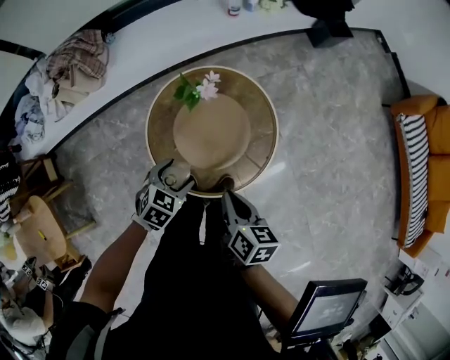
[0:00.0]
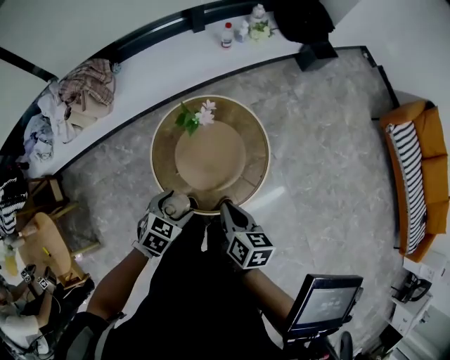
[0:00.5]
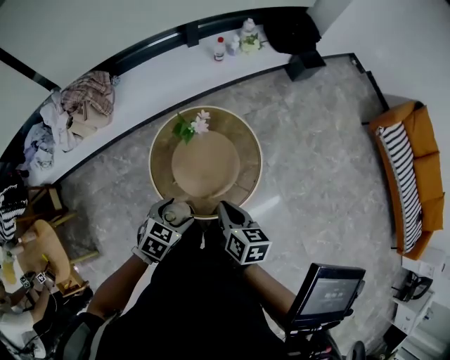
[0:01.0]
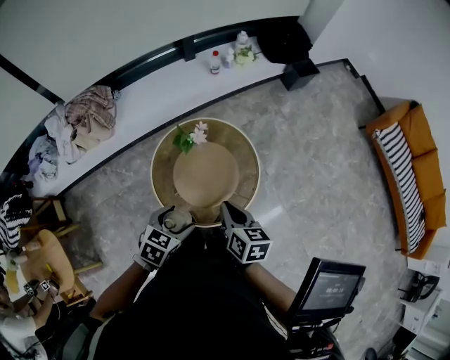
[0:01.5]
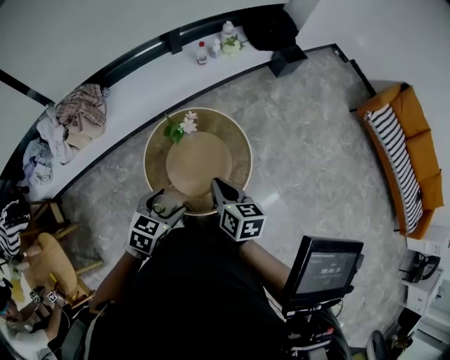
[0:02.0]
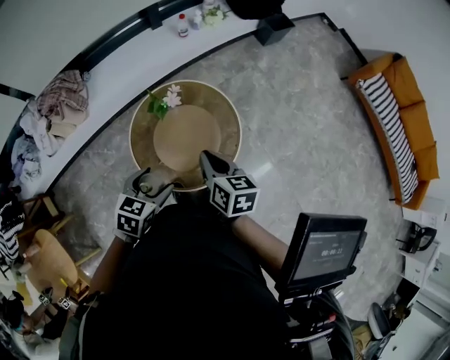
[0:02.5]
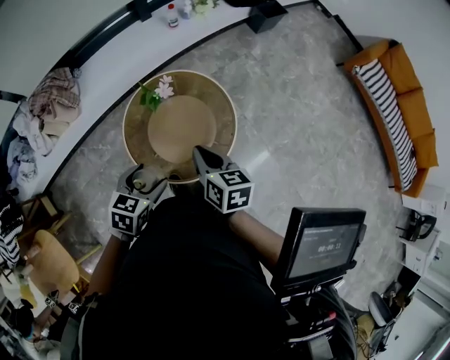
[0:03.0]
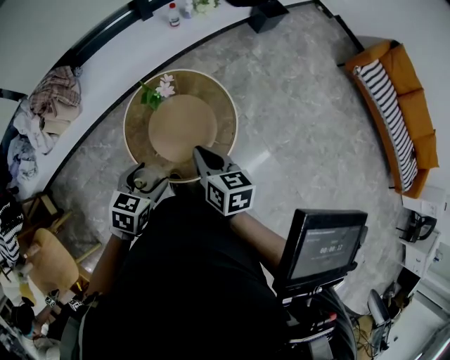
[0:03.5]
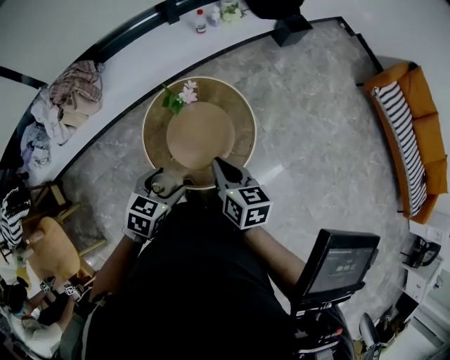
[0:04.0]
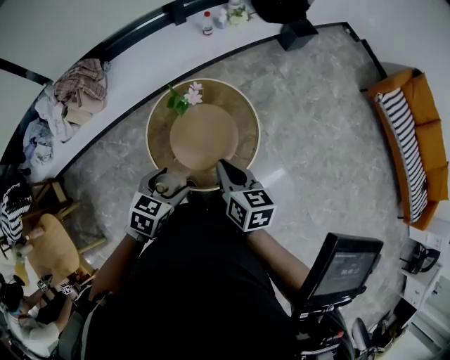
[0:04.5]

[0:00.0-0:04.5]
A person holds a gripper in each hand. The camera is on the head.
0:00.0 to 0:02.0: The right gripper goes some 10 cm upward, while the left gripper heads upward, covering some 20 cm.
0:02.0 to 0:04.5: The grippers make only small movements.

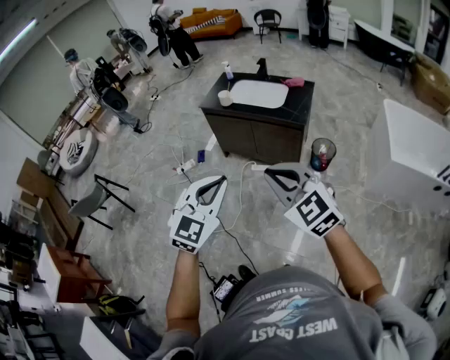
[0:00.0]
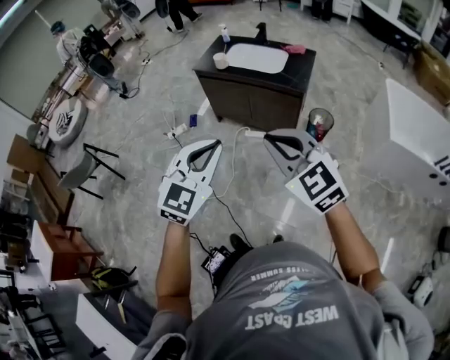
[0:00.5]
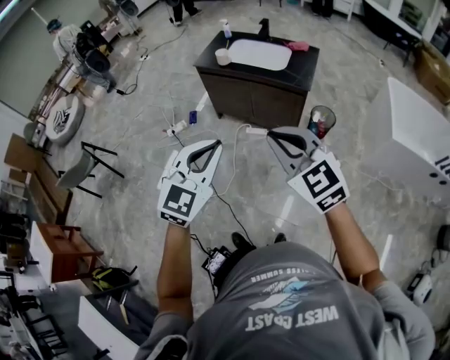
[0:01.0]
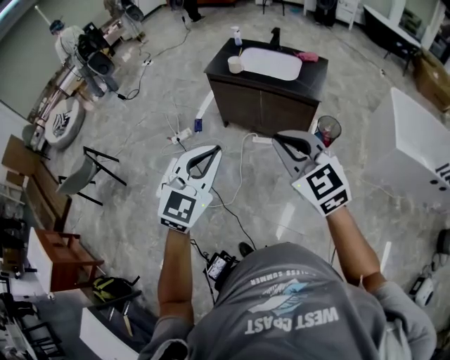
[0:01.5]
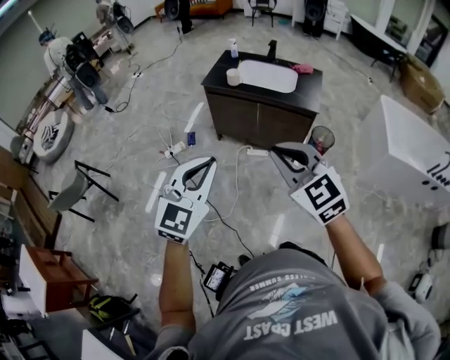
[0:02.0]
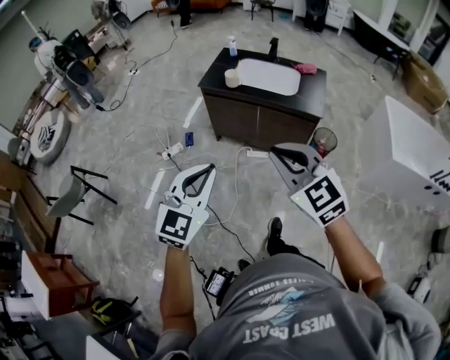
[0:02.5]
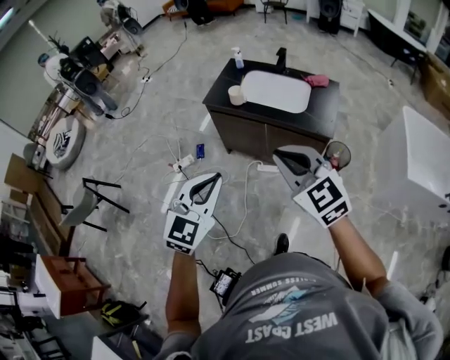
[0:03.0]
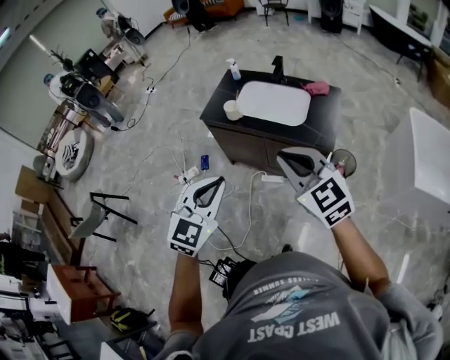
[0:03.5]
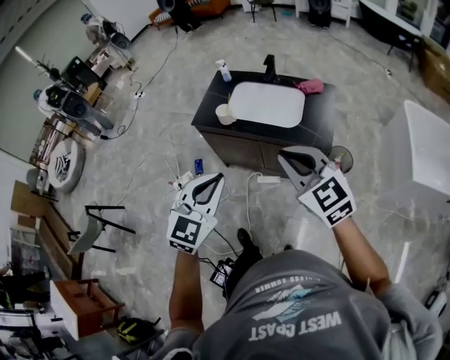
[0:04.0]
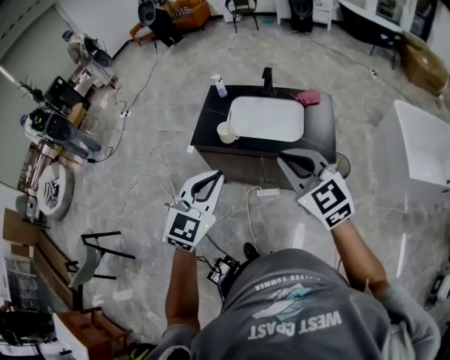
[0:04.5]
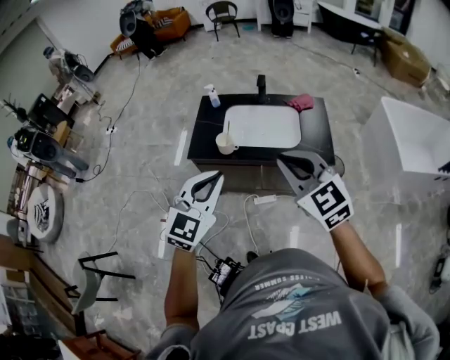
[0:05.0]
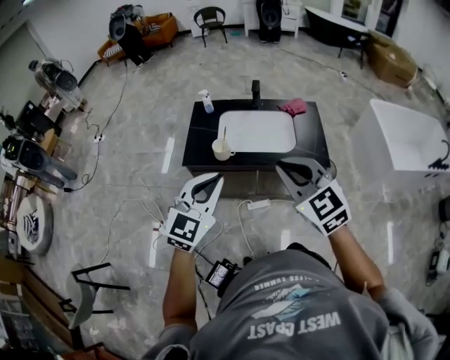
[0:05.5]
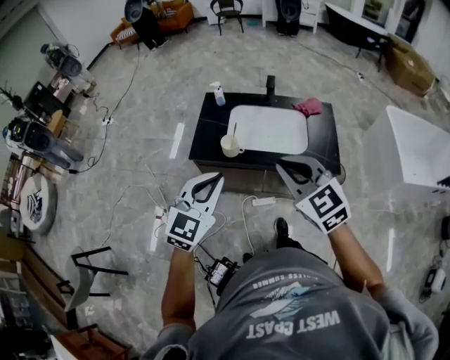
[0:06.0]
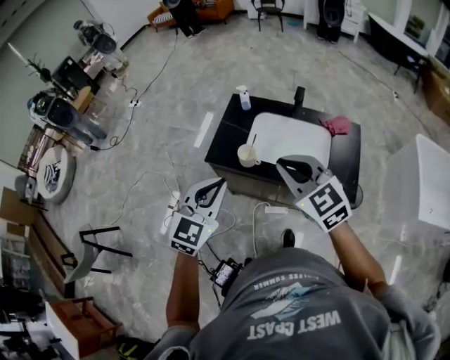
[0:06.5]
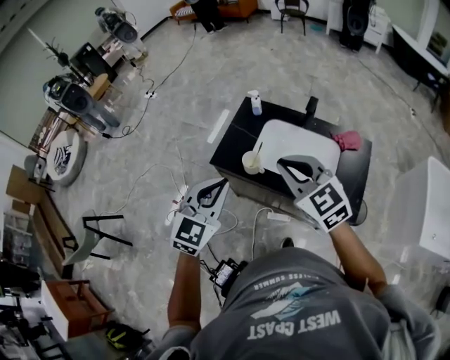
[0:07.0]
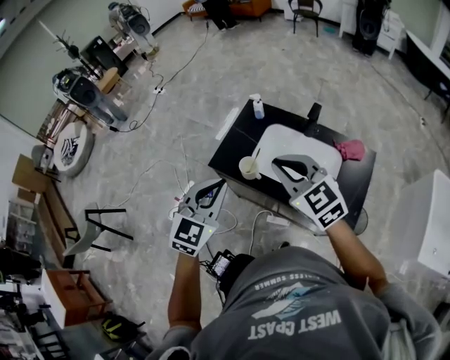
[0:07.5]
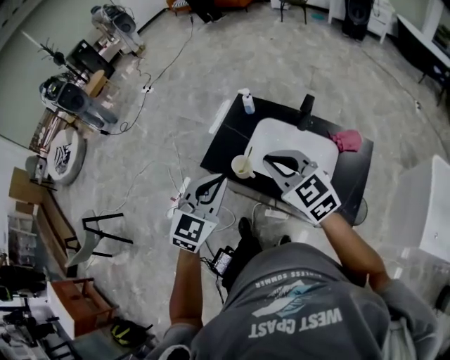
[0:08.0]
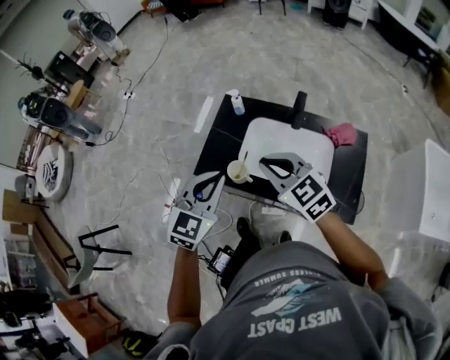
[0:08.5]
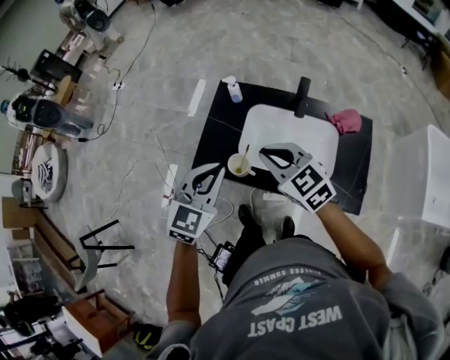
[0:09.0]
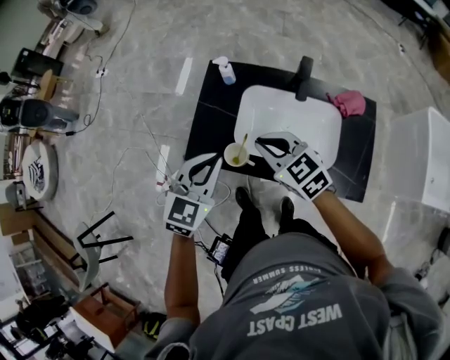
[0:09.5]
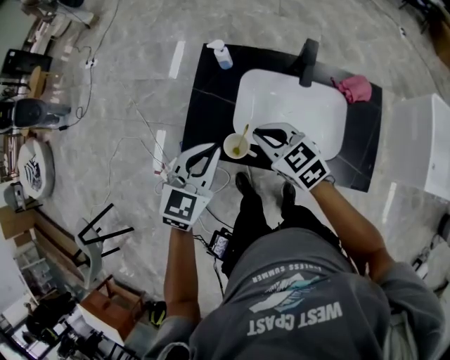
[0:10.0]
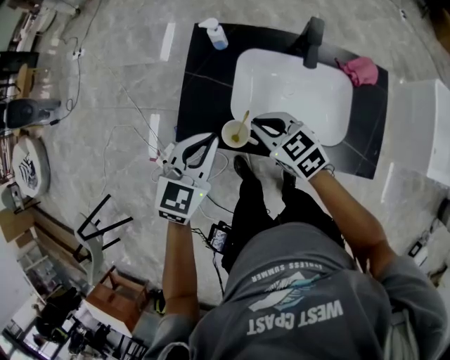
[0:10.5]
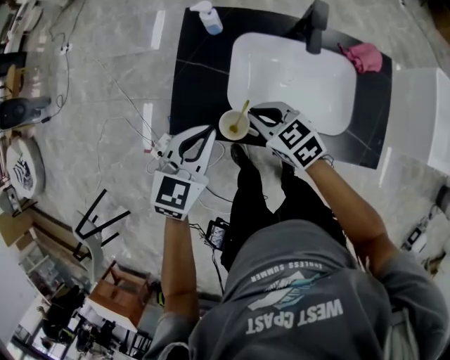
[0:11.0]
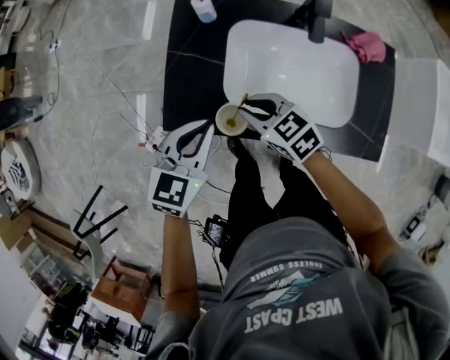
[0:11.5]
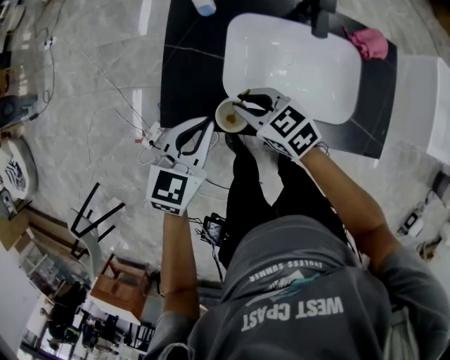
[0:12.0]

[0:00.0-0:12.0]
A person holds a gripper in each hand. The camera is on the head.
0:00.0 to 0:02.0: The grippers both shift to the left and forward by about 20 cm.
0:02.0 to 0:04.0: The two grippers go some 35 cm forward and to the right.
0:04.0 to 0:06.0: The right gripper moves to the left and forward, about 20 cm. The left gripper moves forward and to the left, approximately 20 cm.
0:06.0 to 0:08.0: The right gripper goes roughly 20 cm forward, and changes its angle by roughly 20 degrees. Meanwhile the left gripper heads forward and to the right, covering some 15 cm, and turns by about 20 degrees.
0:08.0 to 0:10.0: The right gripper travels downward and forward by about 20 cm, and turns by about 20 degrees. The left gripper heads forward and downward, covering roughly 15 cm.
0:10.0 to 0:12.0: Both grippers travel together downward, some 10 cm.

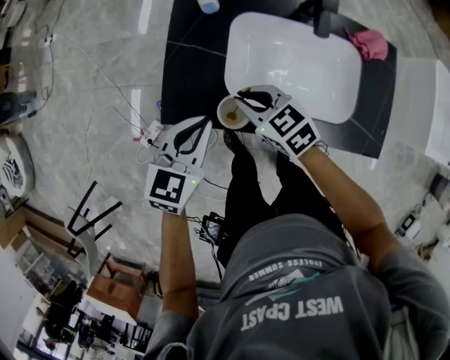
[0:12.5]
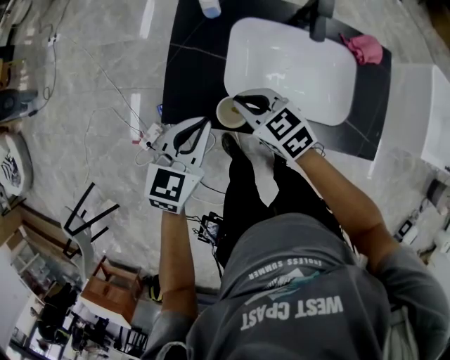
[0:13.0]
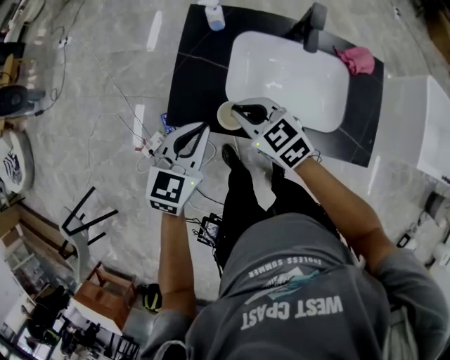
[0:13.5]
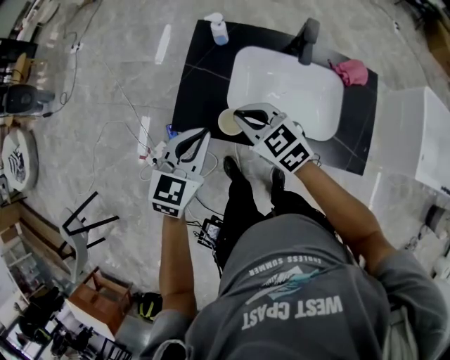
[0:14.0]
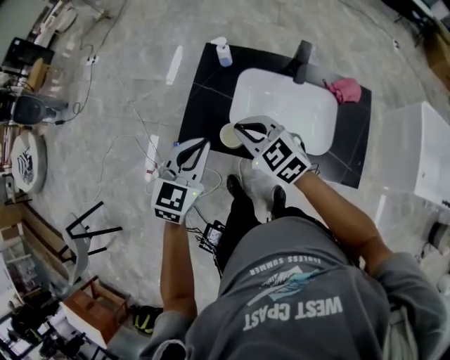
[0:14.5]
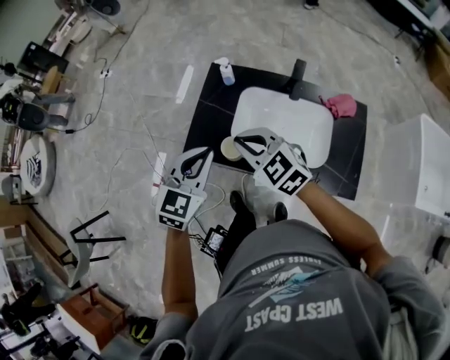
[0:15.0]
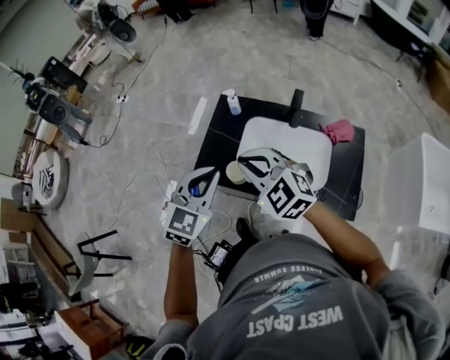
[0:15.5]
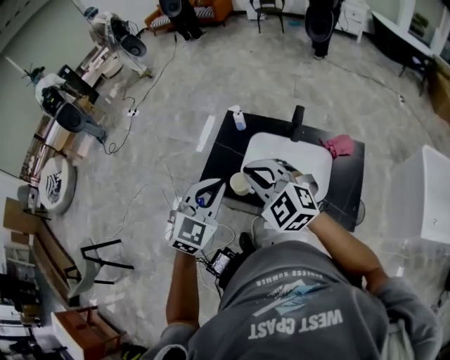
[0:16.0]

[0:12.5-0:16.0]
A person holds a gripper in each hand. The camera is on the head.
0:12.5 to 0:14.5: The grippers both shift upward by about 15 cm. The right gripper turns by approximately 20 degrees.
0:14.5 to 0:16.0: The two grippers go some 15 cm upward and backward. The right gripper turns by some 30 degrees.

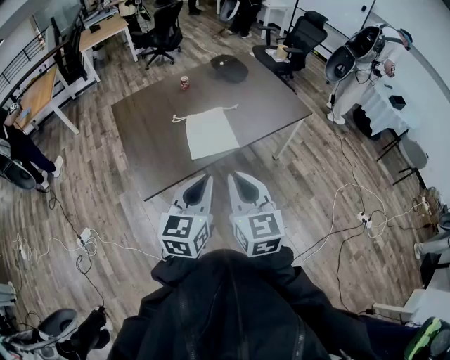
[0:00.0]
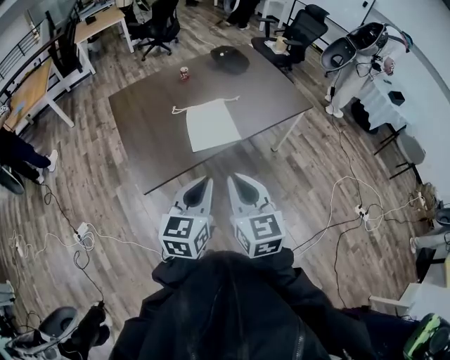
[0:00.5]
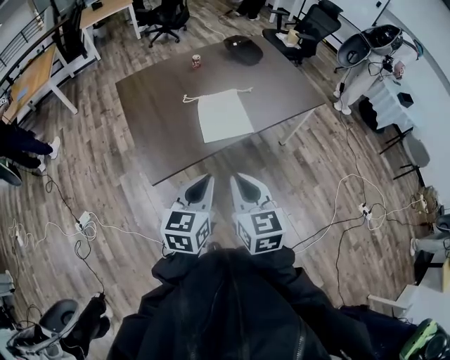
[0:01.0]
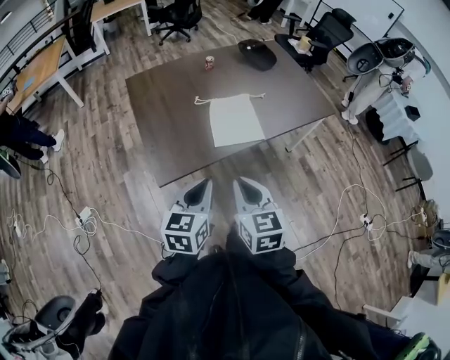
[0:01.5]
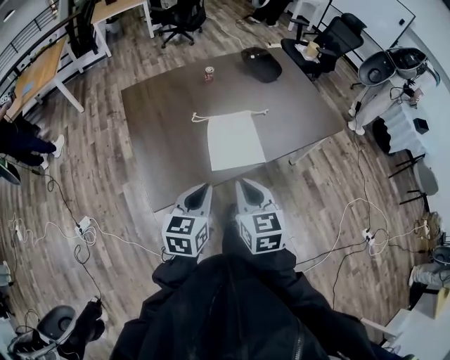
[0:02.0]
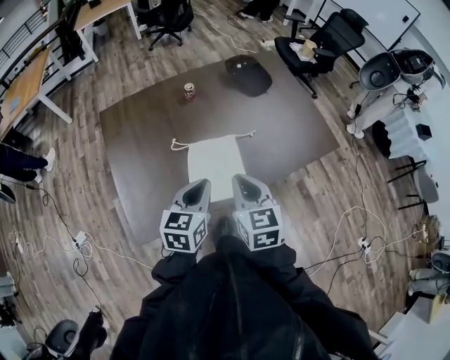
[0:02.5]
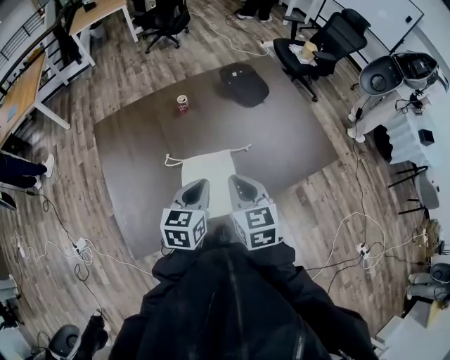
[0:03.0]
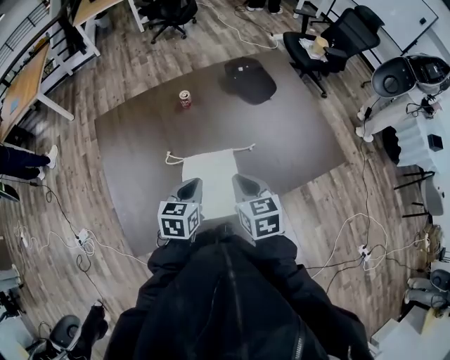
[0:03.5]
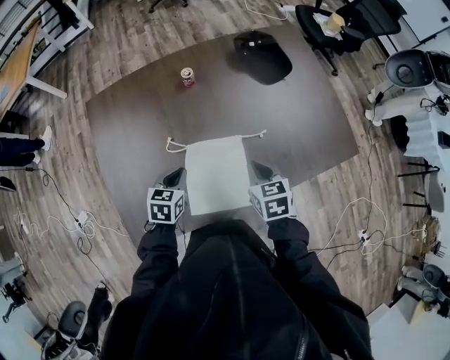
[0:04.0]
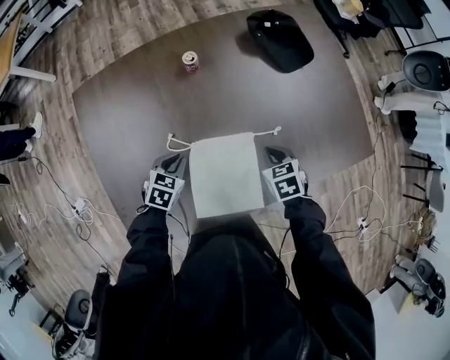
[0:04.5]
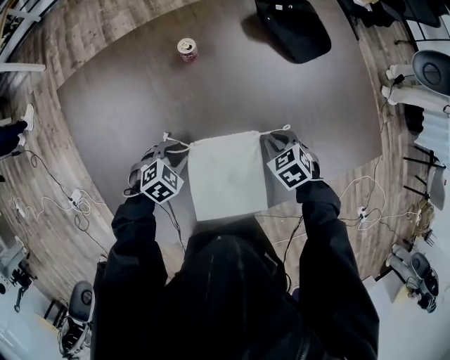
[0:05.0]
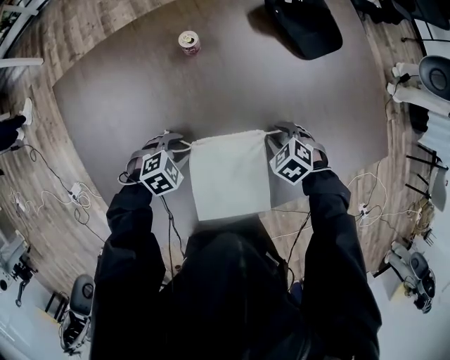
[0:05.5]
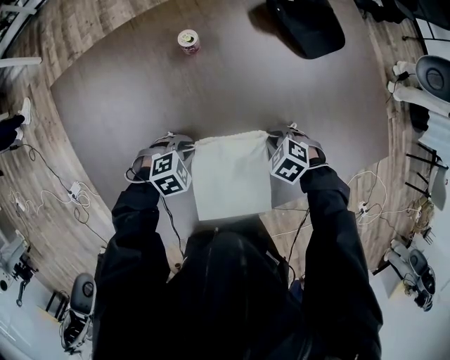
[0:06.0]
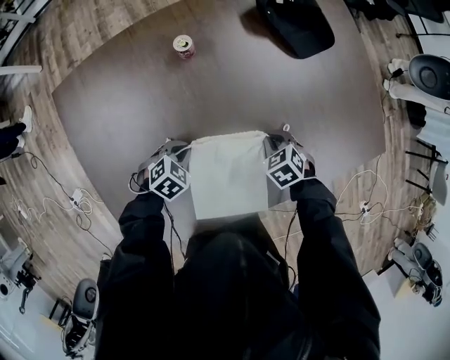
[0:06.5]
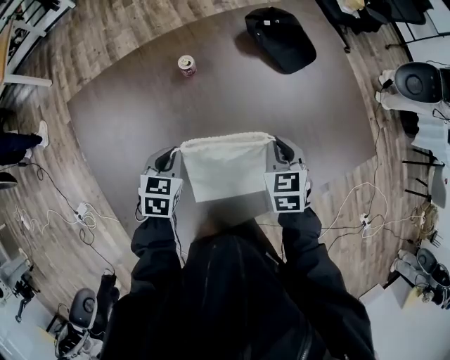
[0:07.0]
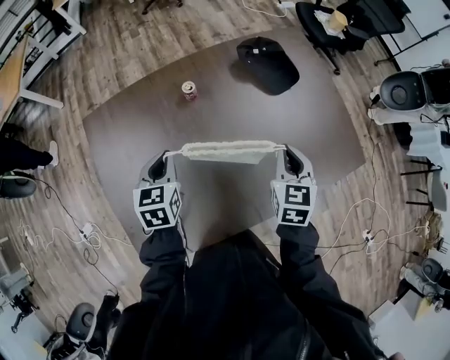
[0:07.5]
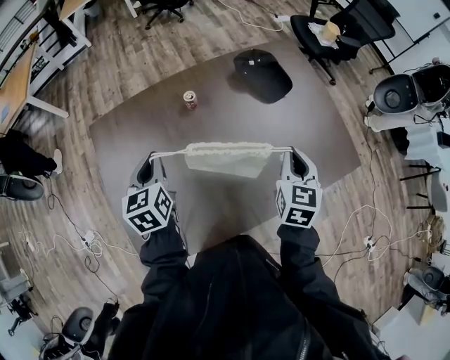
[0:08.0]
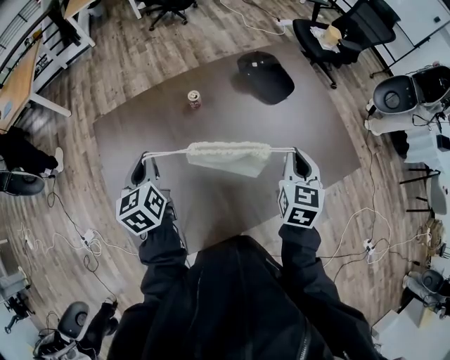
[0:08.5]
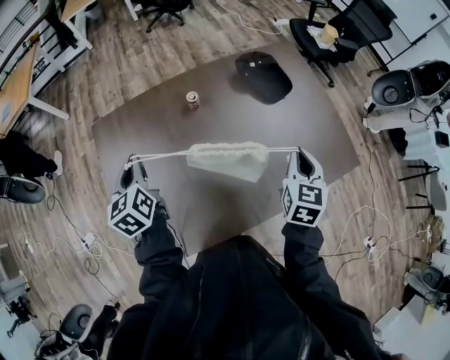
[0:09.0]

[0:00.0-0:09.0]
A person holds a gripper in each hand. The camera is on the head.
0:00.0 to 0:02.0: Both grippers move forward, downward and to the left, some 20 cm.
0:02.0 to 0:04.5: The pair of grippers is taken forward, roughly 40 cm. Both grippers travel together downward, roughly 25 cm. The right gripper points its fingers some 40 degrees further downward. The left gripper angles its fingers downward, by roughly 30 degrees.
0:04.5 to 0:07.0: The left gripper ends up about 10 cm from where it was, and opens, then closes once more. The right gripper heads upward, covering about 5 cm, and opens and closes again.
0:07.0 to 0:09.0: The right gripper is displaced upward by some 15 cm, and turns by about 30 degrees. The left gripper travels upward and to the left by some 25 cm, and rotates some 50 degrees.
